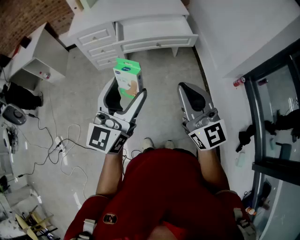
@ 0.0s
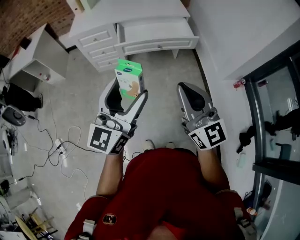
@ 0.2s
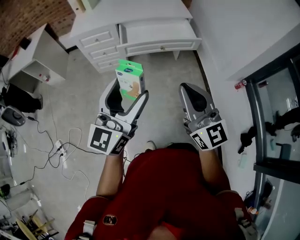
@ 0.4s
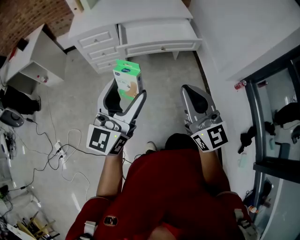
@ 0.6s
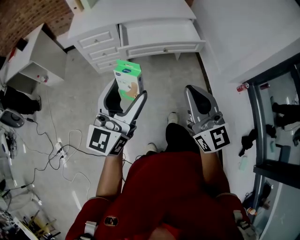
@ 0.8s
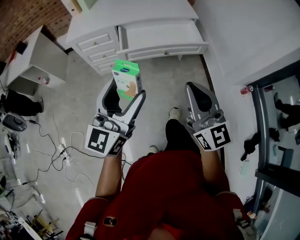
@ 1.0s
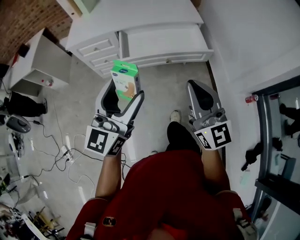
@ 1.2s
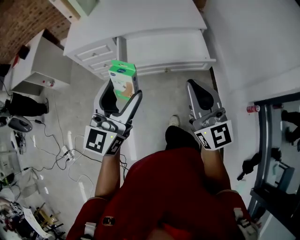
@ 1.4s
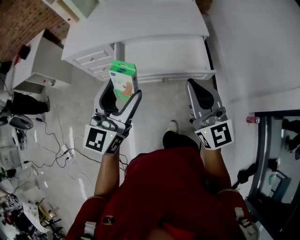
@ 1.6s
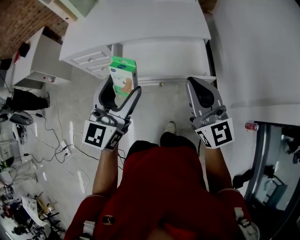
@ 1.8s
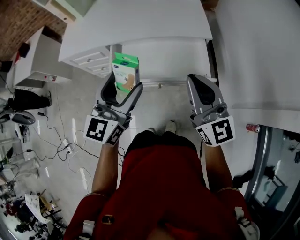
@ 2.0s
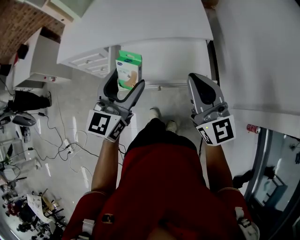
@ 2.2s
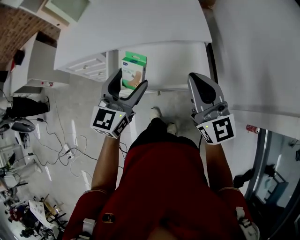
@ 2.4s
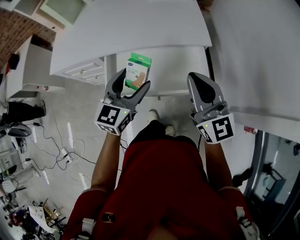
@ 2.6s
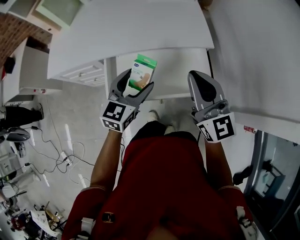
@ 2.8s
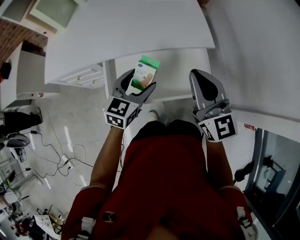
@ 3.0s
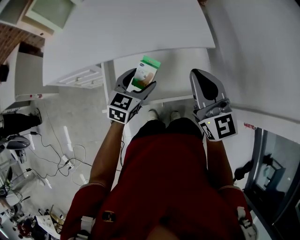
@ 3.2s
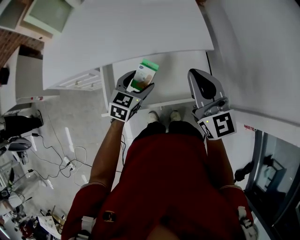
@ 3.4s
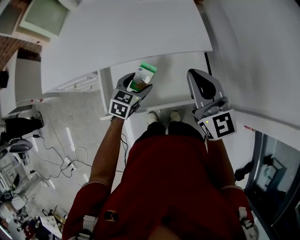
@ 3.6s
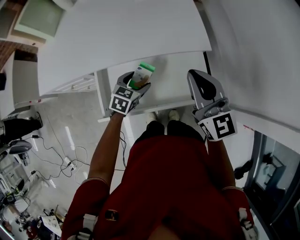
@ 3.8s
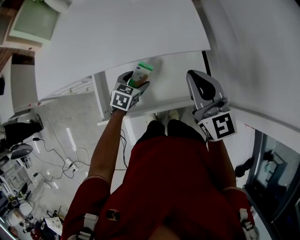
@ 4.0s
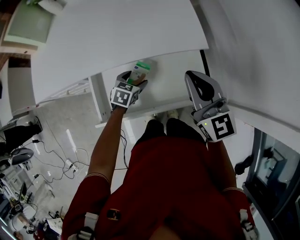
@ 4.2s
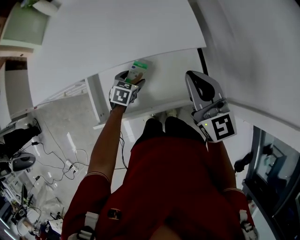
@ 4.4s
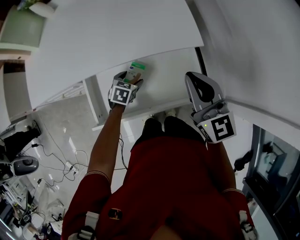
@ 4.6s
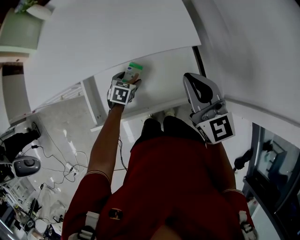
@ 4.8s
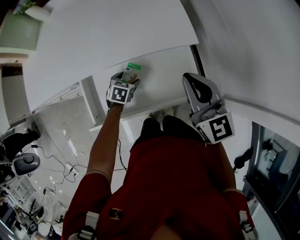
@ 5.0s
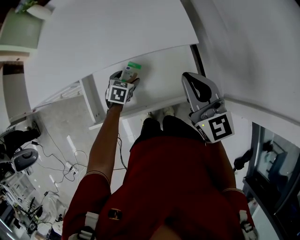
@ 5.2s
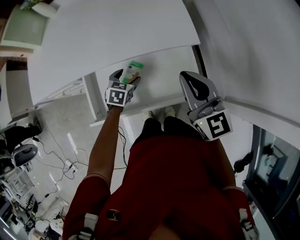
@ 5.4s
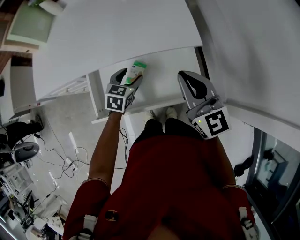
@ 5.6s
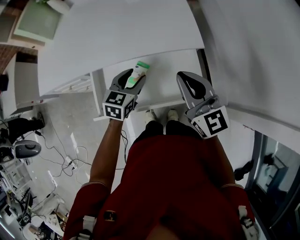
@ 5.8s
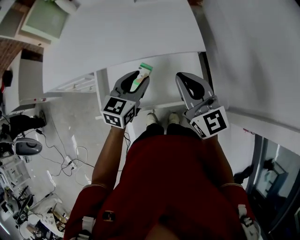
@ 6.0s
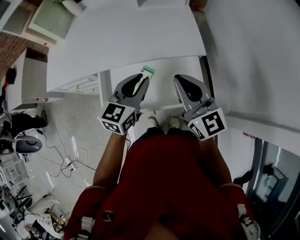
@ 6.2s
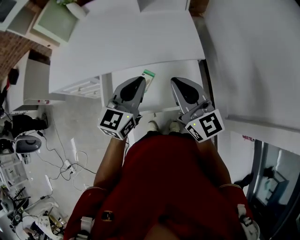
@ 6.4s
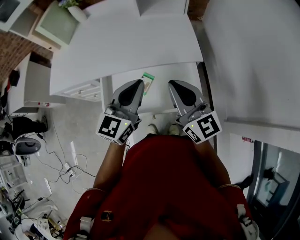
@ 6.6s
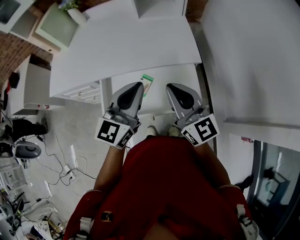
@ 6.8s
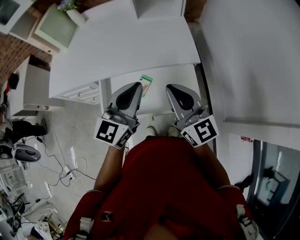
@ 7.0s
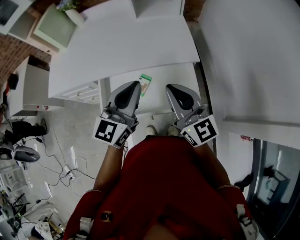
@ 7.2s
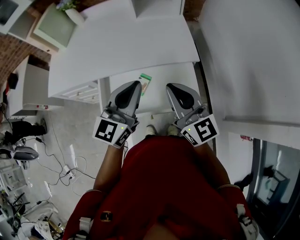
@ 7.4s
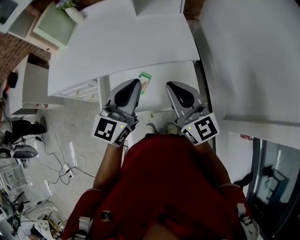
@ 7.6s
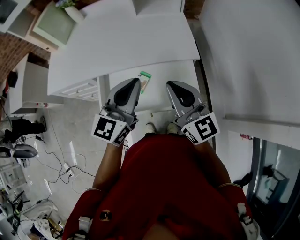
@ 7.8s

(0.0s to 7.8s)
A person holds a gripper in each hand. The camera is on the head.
0.0s - 1.6s: The two grippers go approximately 35 cm forward.
1.6s - 3.2s: The left gripper goes about 35 cm forward and downward, and tilts its fingers approximately 30 degrees downward; the right gripper shifts roughly 25 cm forward.
3.2s - 4.6s: The right gripper travels forward by about 5 cm. Meanwhile the left gripper heads downward and forward, covering some 20 cm, and rotates some 30 degrees.
4.6s - 6.2s: The left gripper shifts about 30 cm upward, tips its fingers upward by roughly 40 degrees, and closes up; the right gripper moves about 5 cm.
6.2s - 7.8s: The left gripper shifts approximately 10 cm upward.

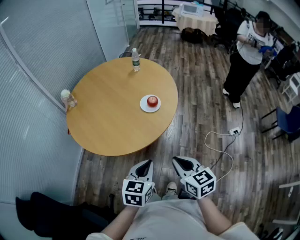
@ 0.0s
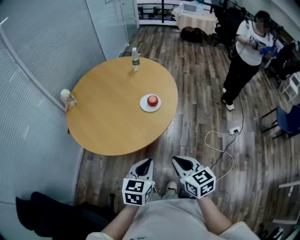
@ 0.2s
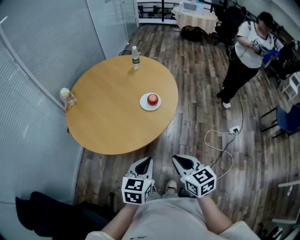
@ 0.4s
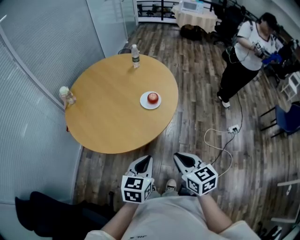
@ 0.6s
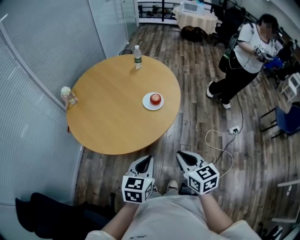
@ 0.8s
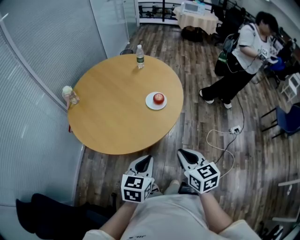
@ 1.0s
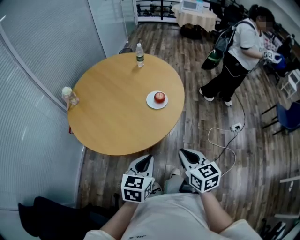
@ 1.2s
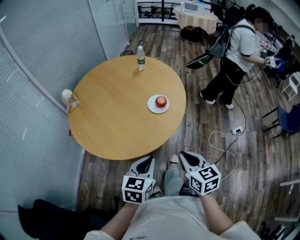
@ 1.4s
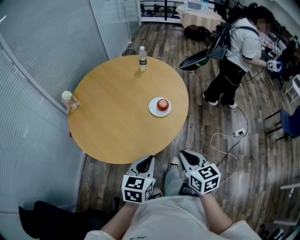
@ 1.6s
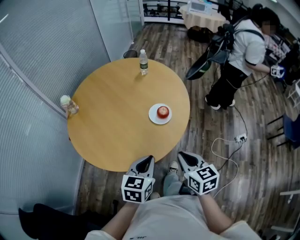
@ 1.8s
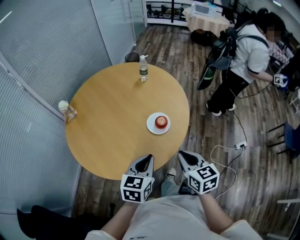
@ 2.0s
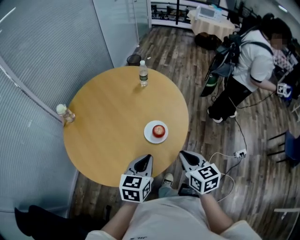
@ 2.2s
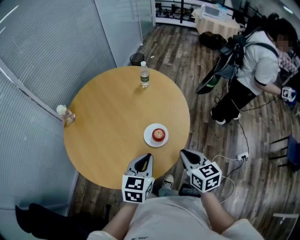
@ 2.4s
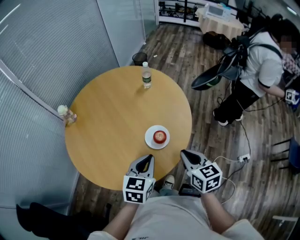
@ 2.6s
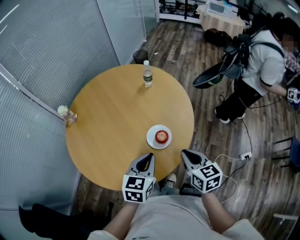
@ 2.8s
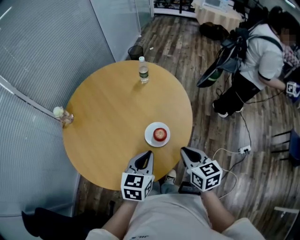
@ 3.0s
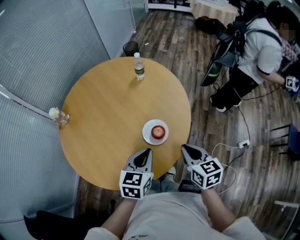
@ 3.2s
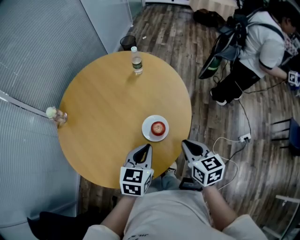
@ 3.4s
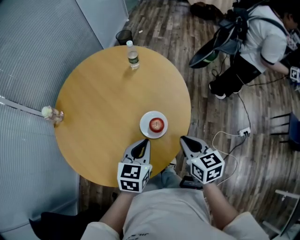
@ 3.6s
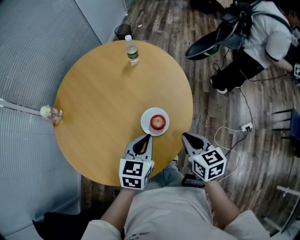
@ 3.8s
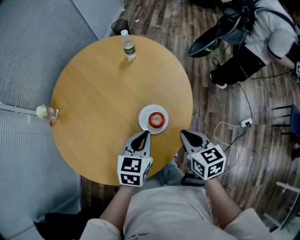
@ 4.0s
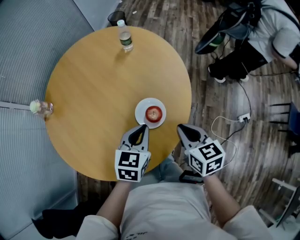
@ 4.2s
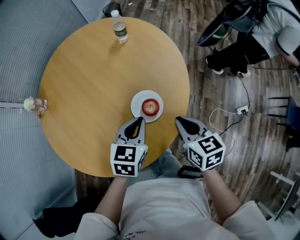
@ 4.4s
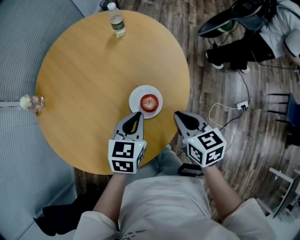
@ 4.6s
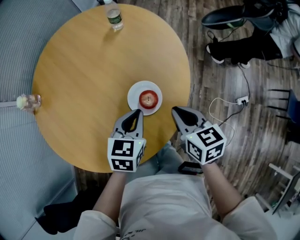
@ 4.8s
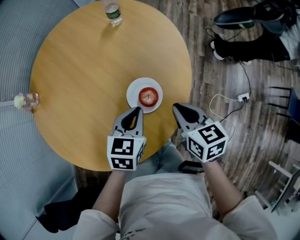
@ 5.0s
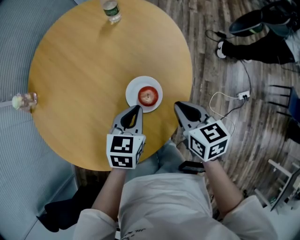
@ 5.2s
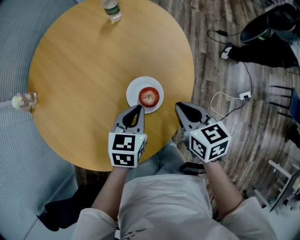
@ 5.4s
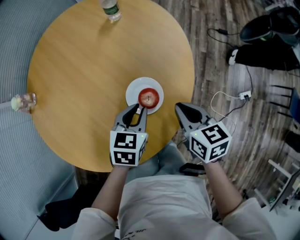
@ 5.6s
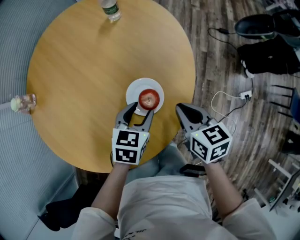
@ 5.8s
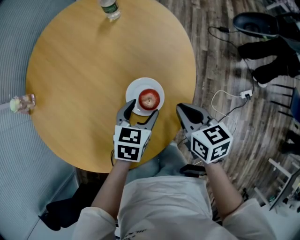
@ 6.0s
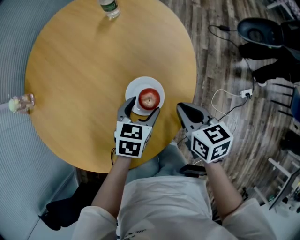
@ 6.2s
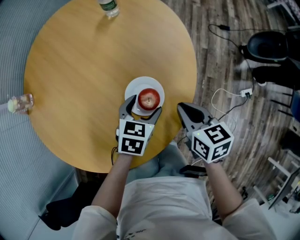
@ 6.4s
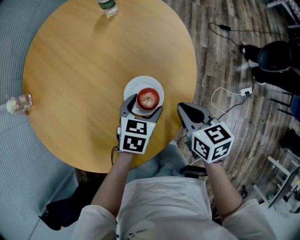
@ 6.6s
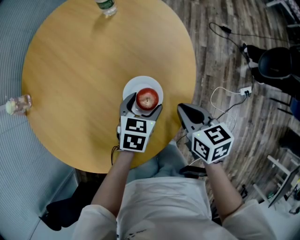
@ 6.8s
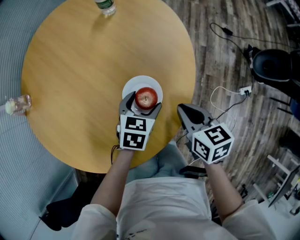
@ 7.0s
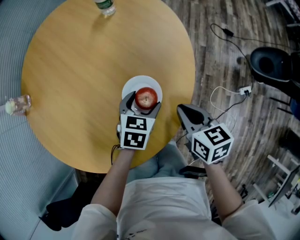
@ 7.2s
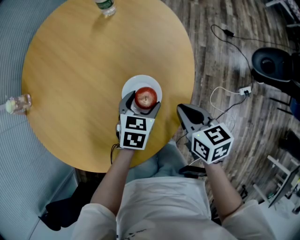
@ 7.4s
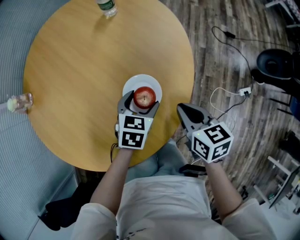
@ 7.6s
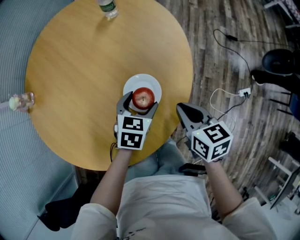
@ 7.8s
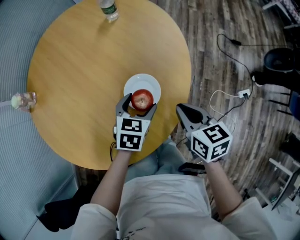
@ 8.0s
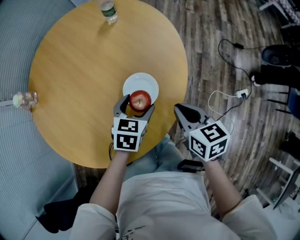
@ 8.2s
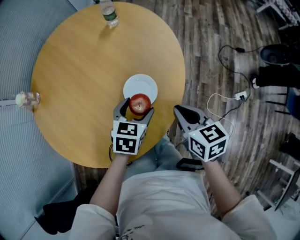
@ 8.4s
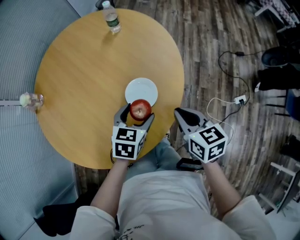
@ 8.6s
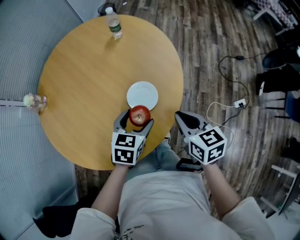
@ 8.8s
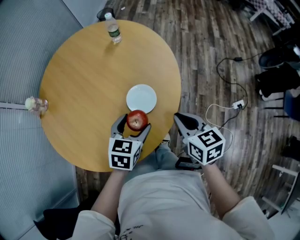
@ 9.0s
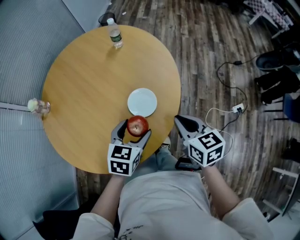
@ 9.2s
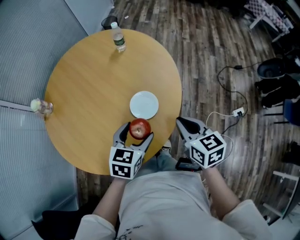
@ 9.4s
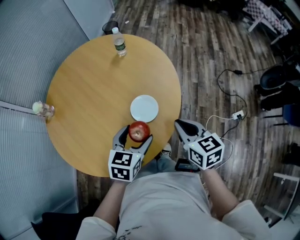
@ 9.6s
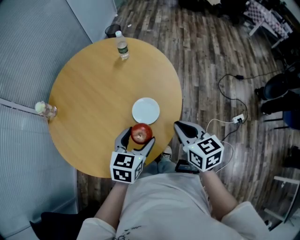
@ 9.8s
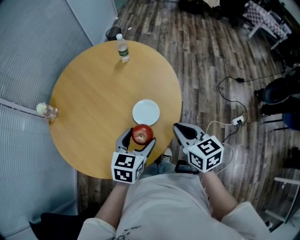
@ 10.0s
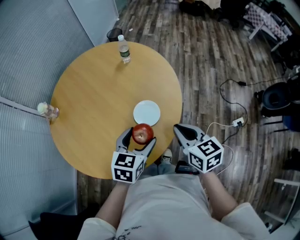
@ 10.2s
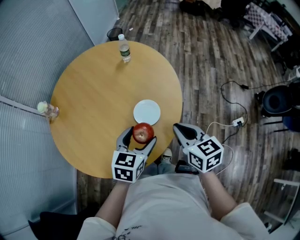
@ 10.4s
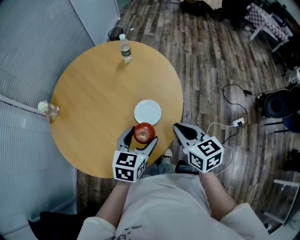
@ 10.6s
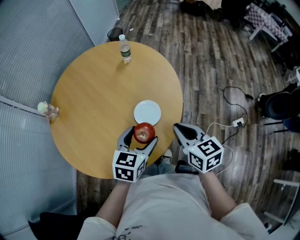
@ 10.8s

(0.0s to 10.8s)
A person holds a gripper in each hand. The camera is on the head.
0.0s - 1.6s: The right gripper travels forward by roughly 10 cm, while the left gripper travels forward and to the left by some 10 cm.
1.6s - 3.0s: The right gripper travels forward and to the right by approximately 25 cm; the left gripper travels forward by approximately 20 cm.
3.0s - 4.6s: The grippers both shift downward and forward by approximately 10 cm.
4.6s - 6.2s: The right gripper travels downward by roughly 5 cm, while the left gripper is displaced downward by approximately 10 cm, and opens.
6.2s - 7.8s: The grippers stay close to where they were, moving slightly.
7.8s - 9.2s: Both grippers travel together upward and backward, some 15 cm.
9.2s - 10.8s: The left gripper travels upward by roughly 5 cm. The right gripper ends up about 5 cm from where it was.

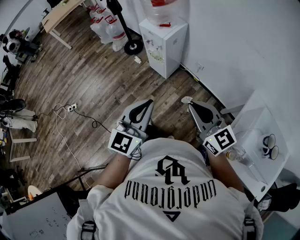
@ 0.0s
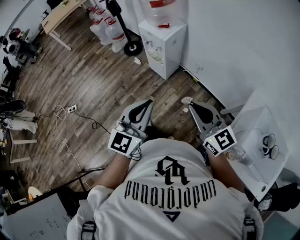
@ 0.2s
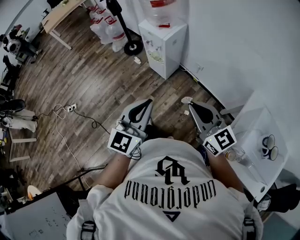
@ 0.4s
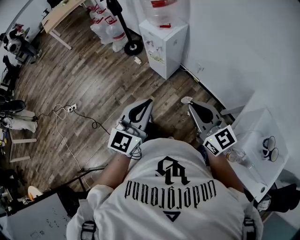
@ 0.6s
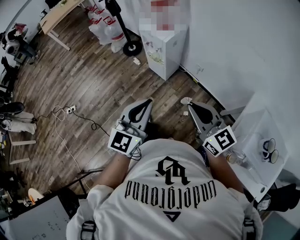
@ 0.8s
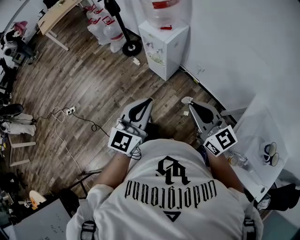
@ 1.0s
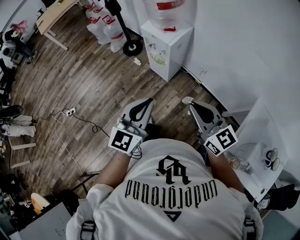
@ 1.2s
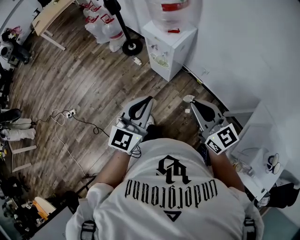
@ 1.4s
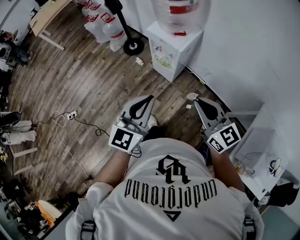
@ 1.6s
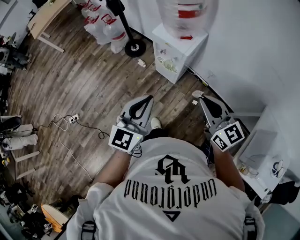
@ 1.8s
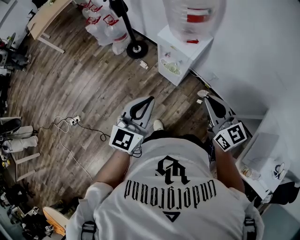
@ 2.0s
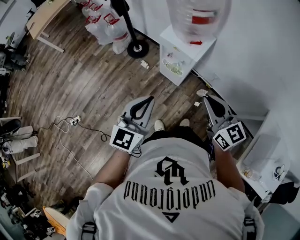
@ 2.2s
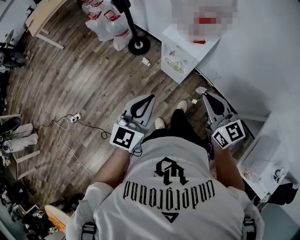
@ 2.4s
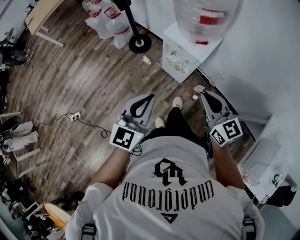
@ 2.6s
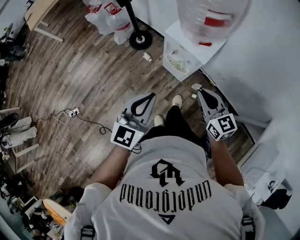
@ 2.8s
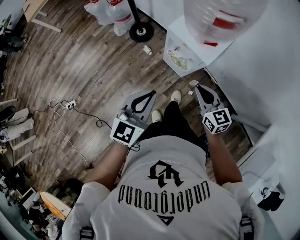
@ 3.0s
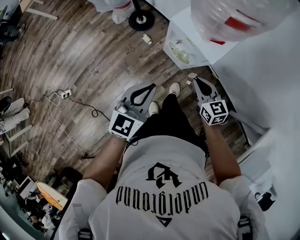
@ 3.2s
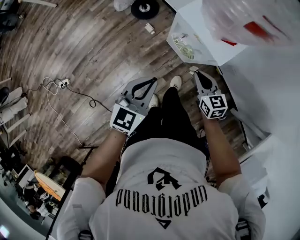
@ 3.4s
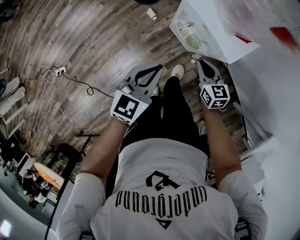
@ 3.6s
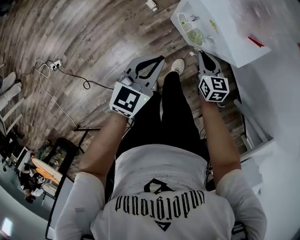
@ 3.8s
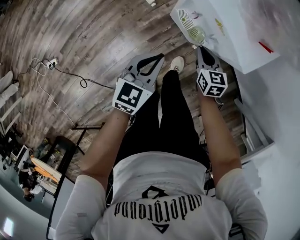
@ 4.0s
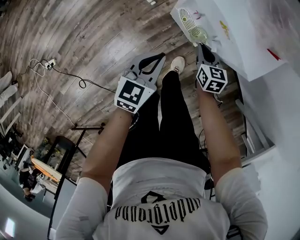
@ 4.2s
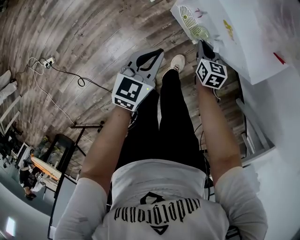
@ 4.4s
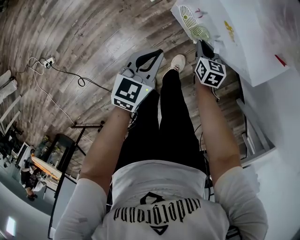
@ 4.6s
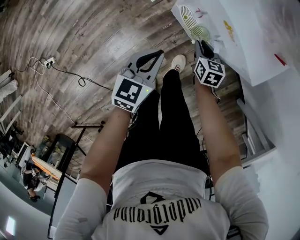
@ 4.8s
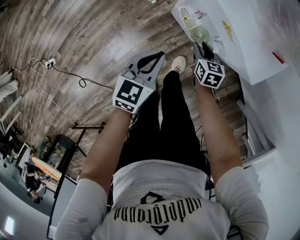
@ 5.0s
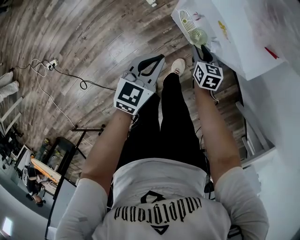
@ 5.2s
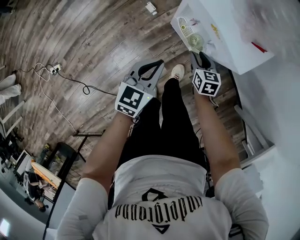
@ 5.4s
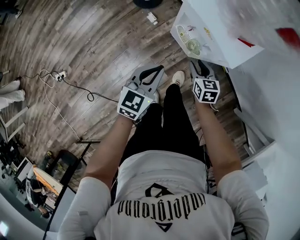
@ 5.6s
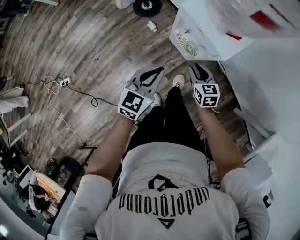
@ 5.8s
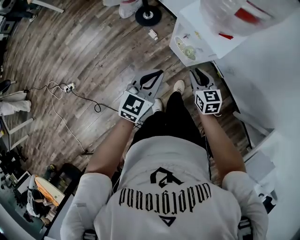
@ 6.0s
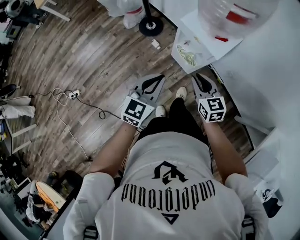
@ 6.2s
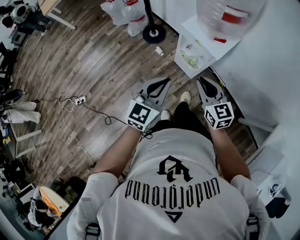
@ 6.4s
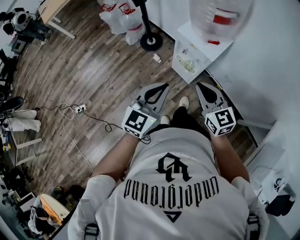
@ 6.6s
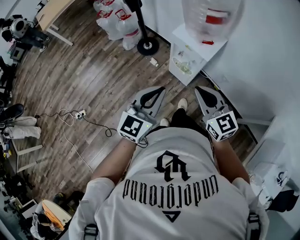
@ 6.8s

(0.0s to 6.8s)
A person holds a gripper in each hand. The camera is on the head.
0.0s - 1.4s: Both grippers travel together forward and to the left, about 15 cm.
1.4s - 2.8s: The right gripper travels forward, downward and to the left by about 30 cm; the left gripper travels forward and to the left by approximately 25 cm.
2.8s - 4.0s: The two grippers go roughly 40 cm downward and forward. The right gripper swivels roughly 20 degrees.
4.0s - 5.4s: The right gripper goes downward and returns, roughly 10 cm each way, and opens.
5.4s - 6.8s: The grippers both shift upward and backward by approximately 50 cm. The left gripper swivels some 30 degrees, while the right gripper tips its fingers upward by roughly 30 degrees, and closes up.
